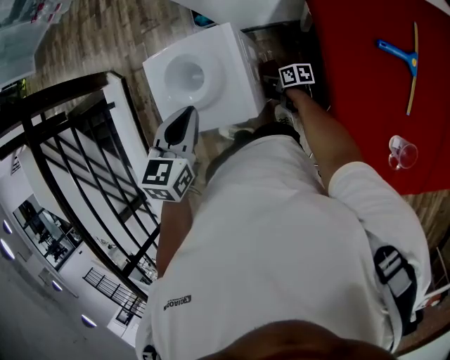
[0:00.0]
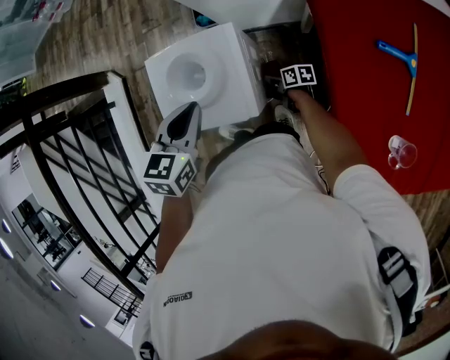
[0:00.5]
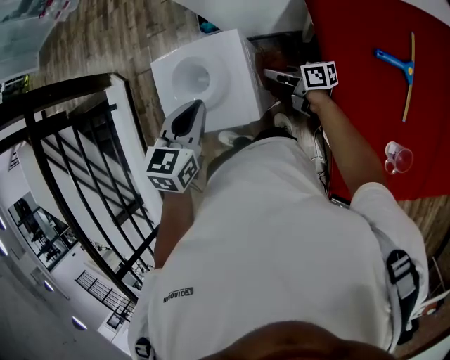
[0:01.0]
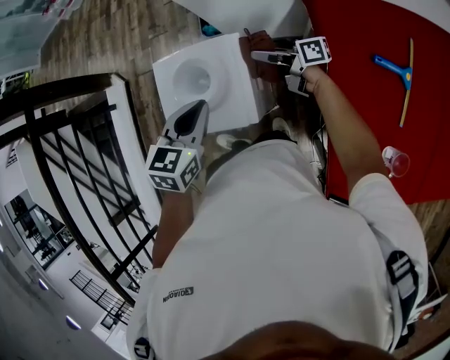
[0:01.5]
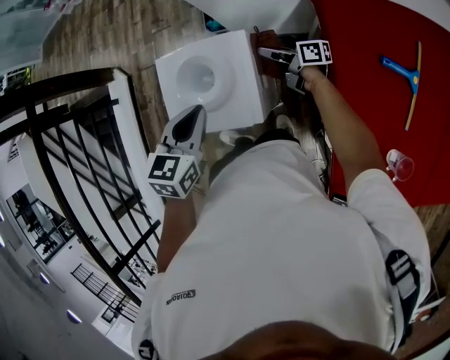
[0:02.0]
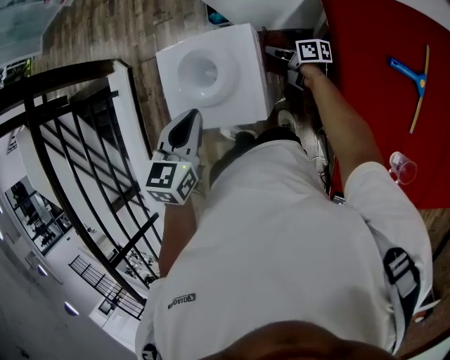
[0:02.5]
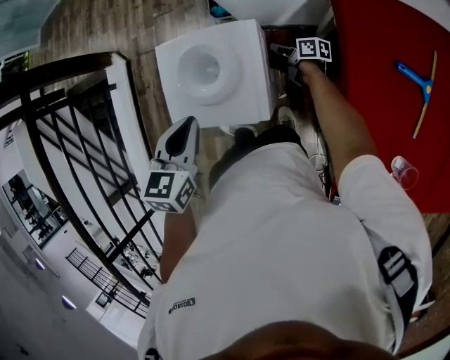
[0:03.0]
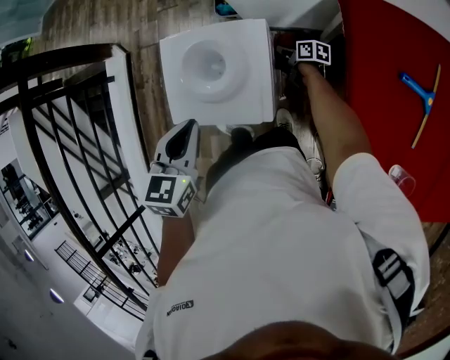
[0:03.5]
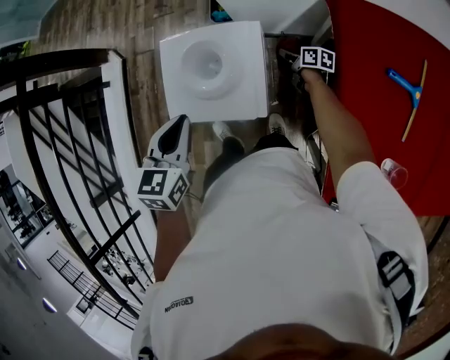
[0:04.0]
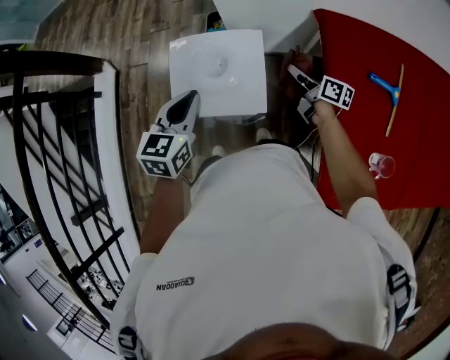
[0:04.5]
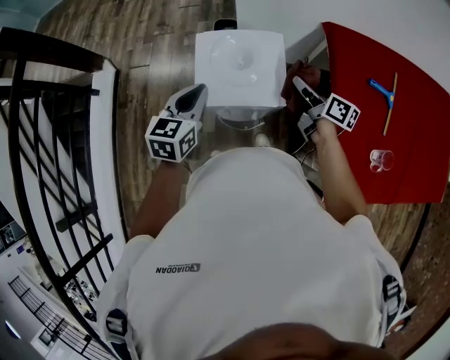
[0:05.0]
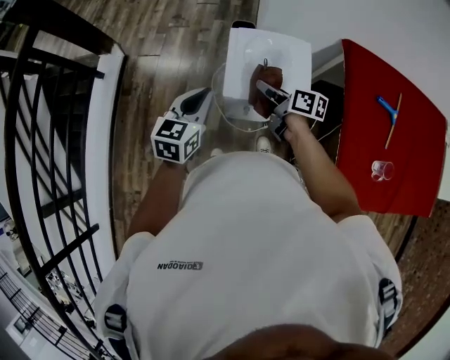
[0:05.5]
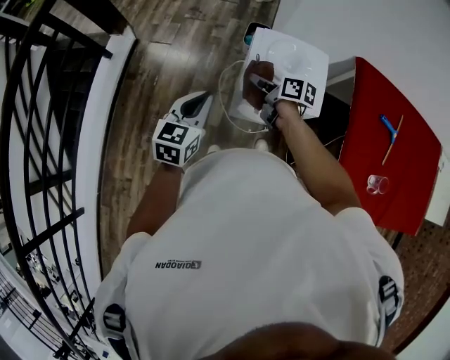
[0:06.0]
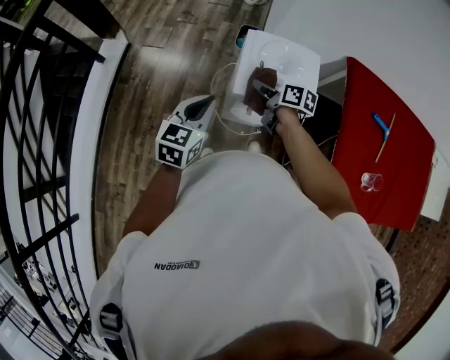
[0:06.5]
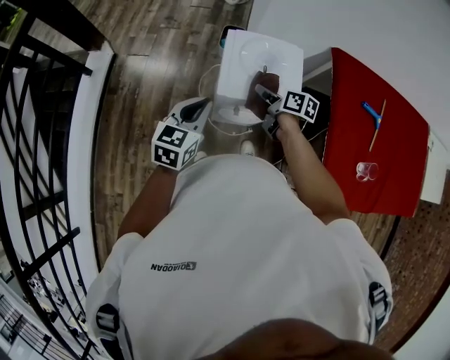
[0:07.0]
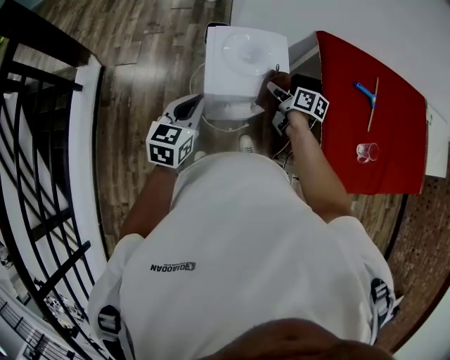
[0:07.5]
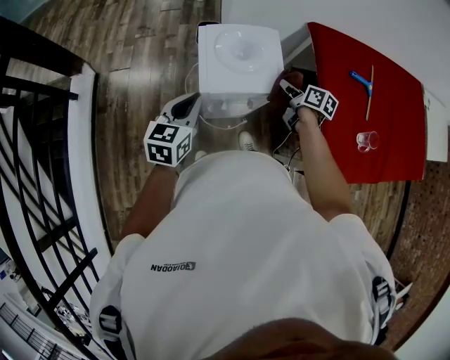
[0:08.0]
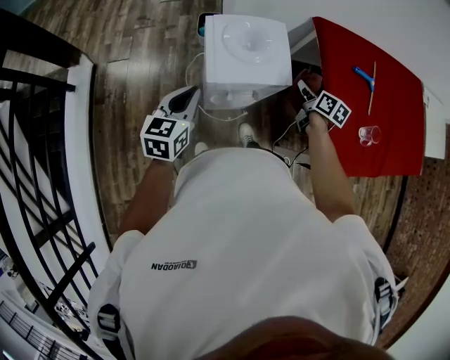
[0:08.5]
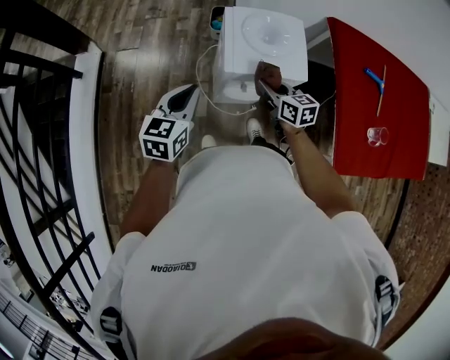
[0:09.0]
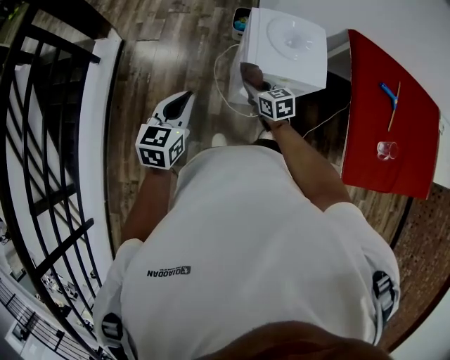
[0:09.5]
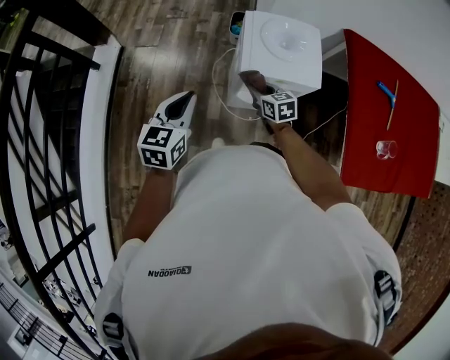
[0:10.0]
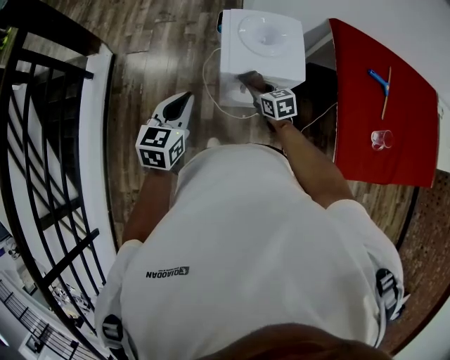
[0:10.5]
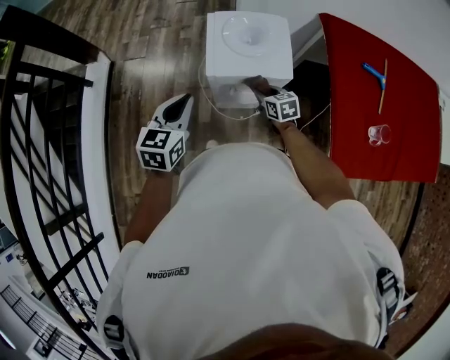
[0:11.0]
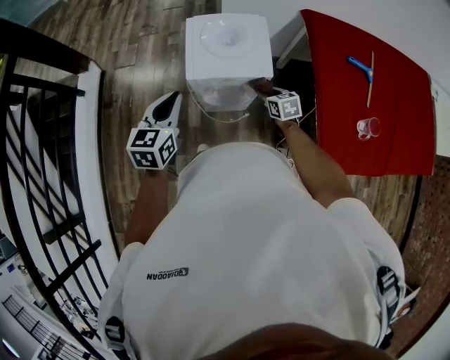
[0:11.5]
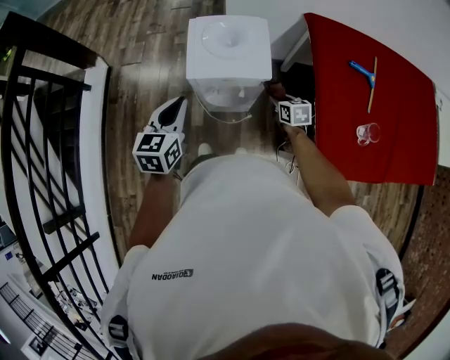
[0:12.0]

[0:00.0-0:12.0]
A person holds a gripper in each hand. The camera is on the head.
0:00.0 to 0:02.0: The right gripper moves upward and forward, roughly 20 cm, and swivels approximately 30 degrees.
0:02.0 to 0:04.0: The left gripper goes roughly 5 cm to the left, while the right gripper shifts about 15 cm downward, and rotates roughly 30 degrees.
0:04.0 to 0:06.0: The left gripper heads to the left, covering about 20 cm, while the right gripper is displaced to the left and upward by some 40 cm.
0:06.0 to 0:08.0: The right gripper shifts about 25 cm to the right, and changes its angle by roughly 30 degrees, while the left gripper moves to the right, about 10 cm.
0:08.0 to 0:10.0: The right gripper travels to the left by approximately 25 cm, and rotates around the line of its fingers by roughly 50 degrees, counterclockwise from behind. The left gripper goes about 15 cm to the left and backward.
0:10.0 to 0:12.0: The right gripper heads to the right, covering some 25 cm. The left gripper is displaced to the right by about 15 cm.

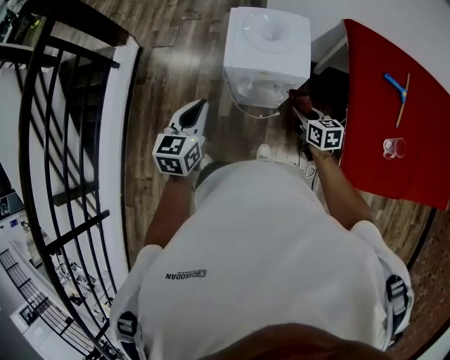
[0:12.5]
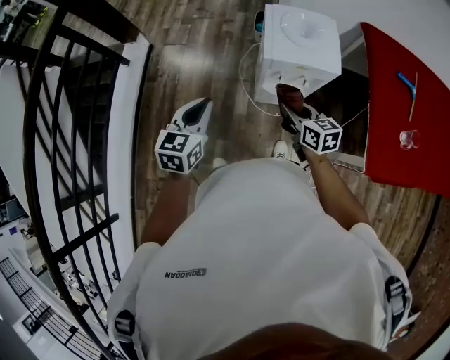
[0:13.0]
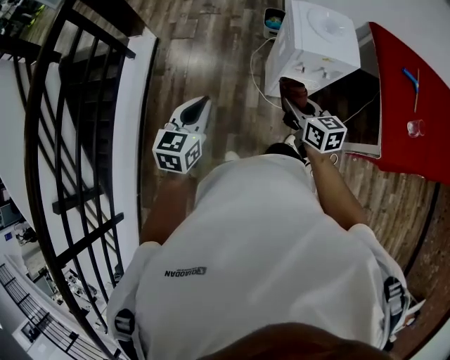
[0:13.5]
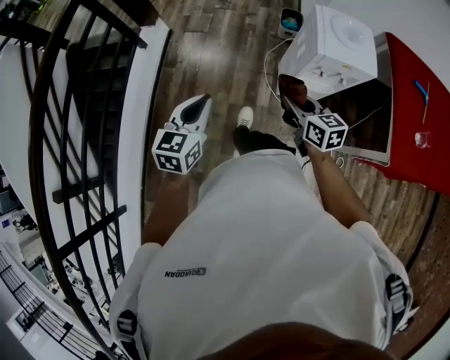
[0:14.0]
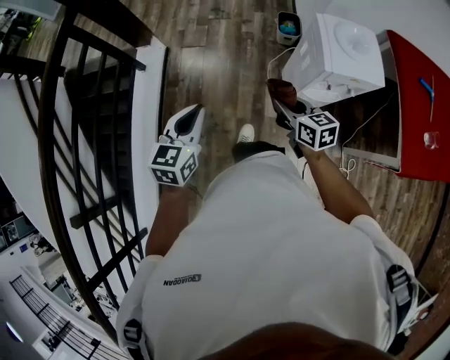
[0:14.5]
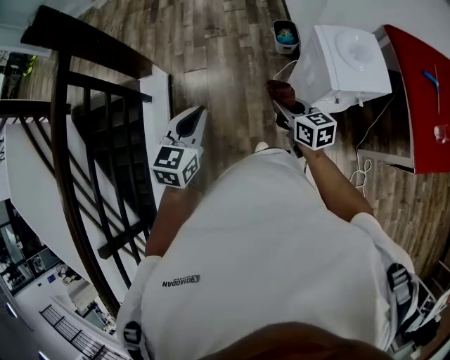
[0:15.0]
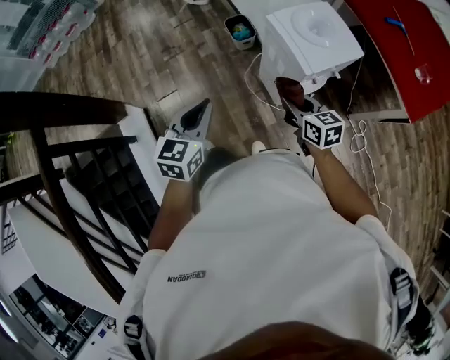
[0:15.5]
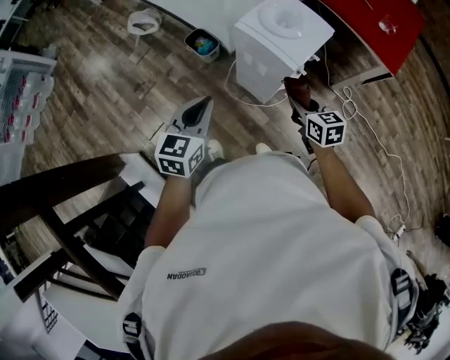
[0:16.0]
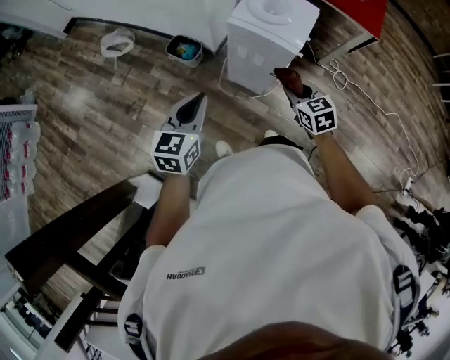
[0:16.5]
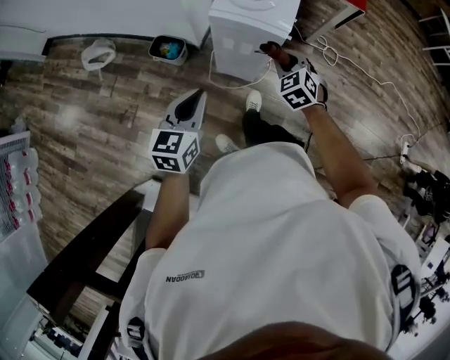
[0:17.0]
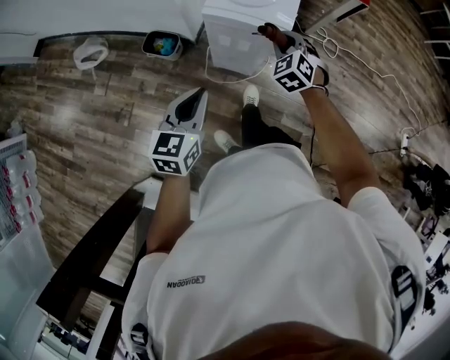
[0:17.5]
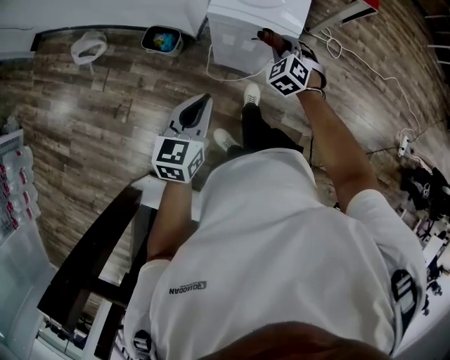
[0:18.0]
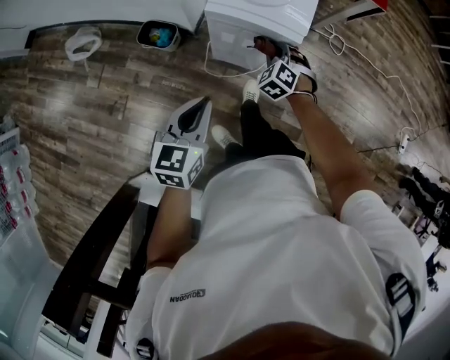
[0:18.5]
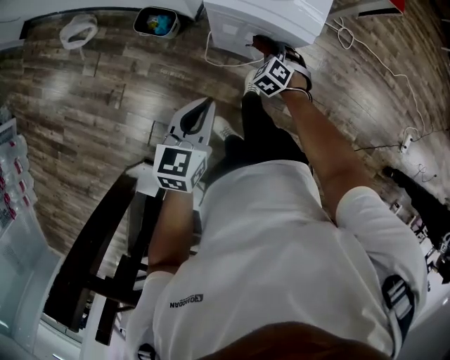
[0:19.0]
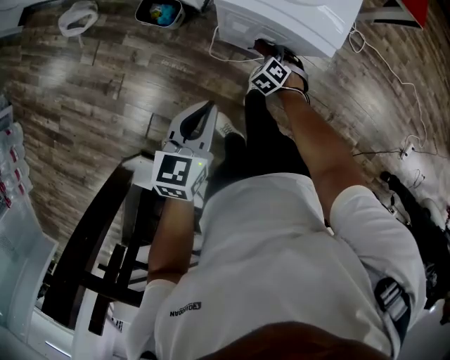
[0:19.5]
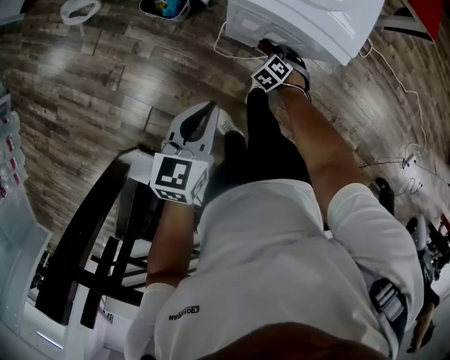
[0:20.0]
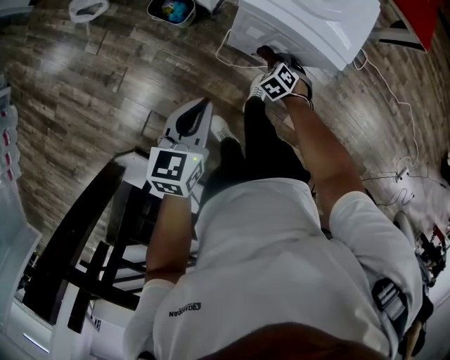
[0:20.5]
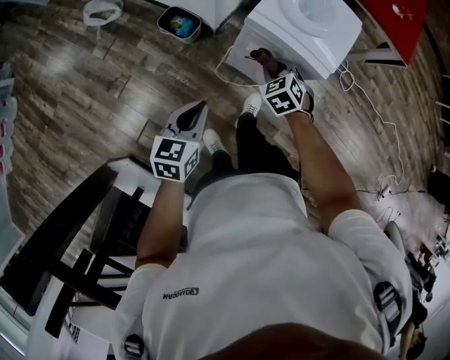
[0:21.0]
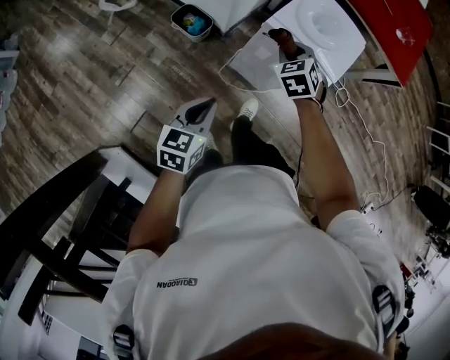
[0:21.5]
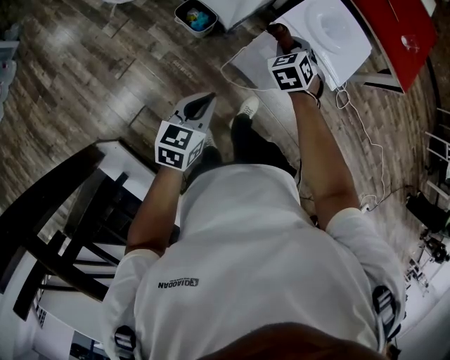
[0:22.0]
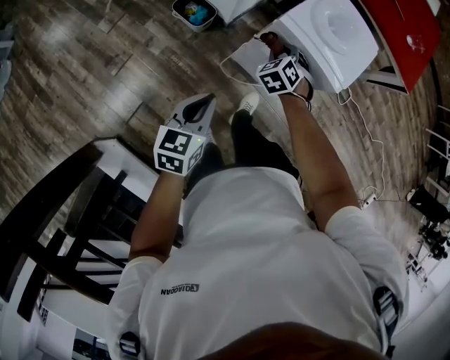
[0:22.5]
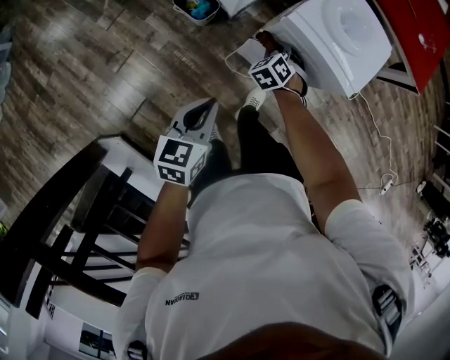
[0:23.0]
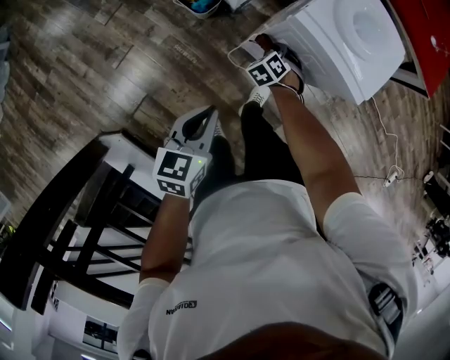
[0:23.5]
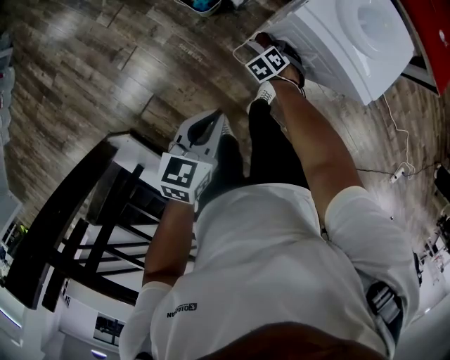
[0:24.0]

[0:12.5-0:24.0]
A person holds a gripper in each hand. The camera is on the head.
0:12.5 to 0:14.5: Both grippers move to the left, some 40 cm.
0:14.5 to 0:16.5: The left gripper ends up about 35 cm from where it was, and swivels roughly 60 degrees, while the right gripper ends up roughly 15 cm from where it was, and swivels roughly 60 degrees.
0:16.5 to 0:18.5: The right gripper moves downward, some 15 cm, and rotates roughly 40 degrees; the left gripper heads downward, covering some 5 cm.
0:18.5 to 0:20.0: The left gripper moves downward, about 5 cm. Meanwhile the right gripper goes some 20 cm downward.
0:20.0 to 0:22.0: The left gripper moves roughly 5 cm, while the right gripper heads upward, covering about 30 cm, and rotates some 20 degrees.
0:22.0 to 0:24.0: The right gripper travels downward by approximately 30 cm, and turns by roughly 20 degrees.

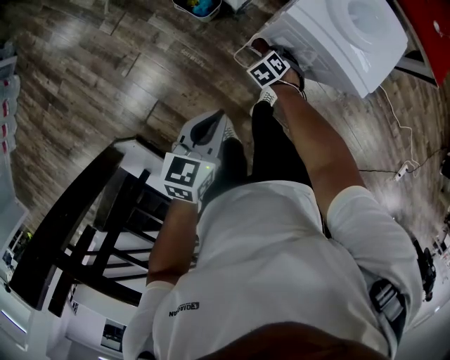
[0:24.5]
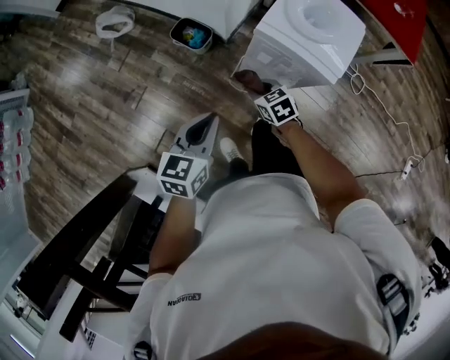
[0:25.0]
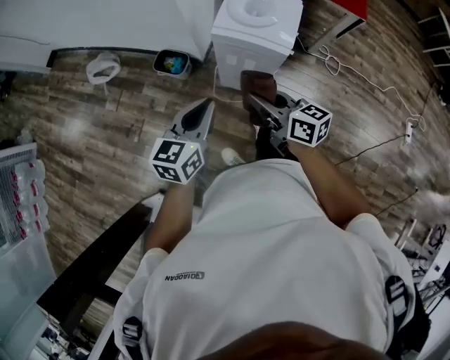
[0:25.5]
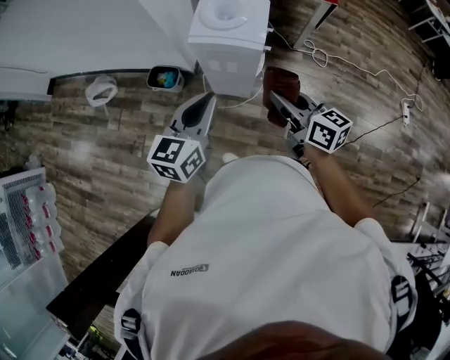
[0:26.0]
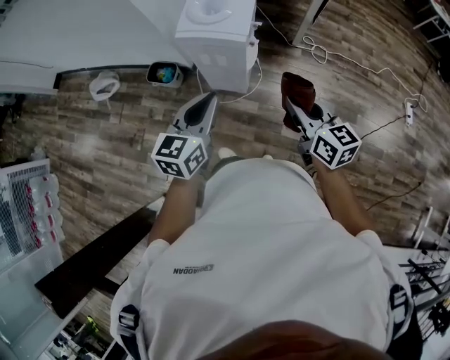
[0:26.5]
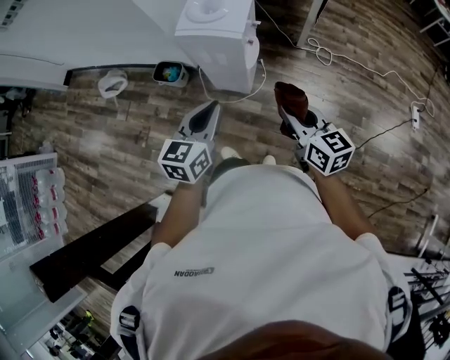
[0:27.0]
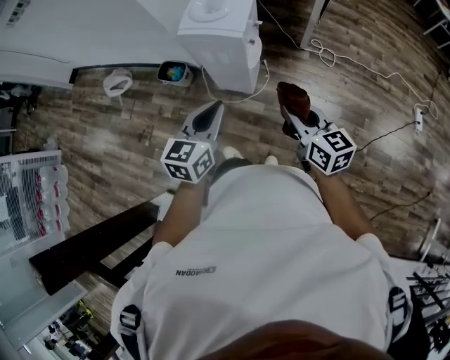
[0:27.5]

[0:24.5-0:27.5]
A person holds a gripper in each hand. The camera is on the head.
0:24.5 to 0:26.0: The left gripper moves upward and to the right, roughly 25 cm, and changes its angle by approximately 30 degrees. The right gripper moves upward and backward, roughly 50 cm, and tips its fingers upward by some 60 degrees.
0:26.0 to 0:27.5: The grippers both shift to the right and backward by roughly 15 cm.
